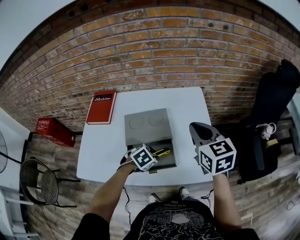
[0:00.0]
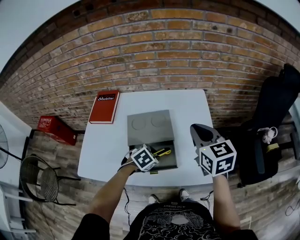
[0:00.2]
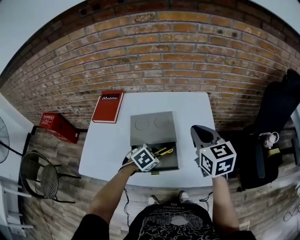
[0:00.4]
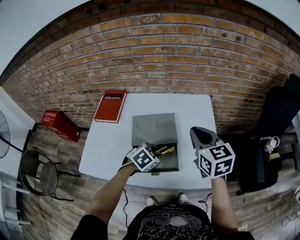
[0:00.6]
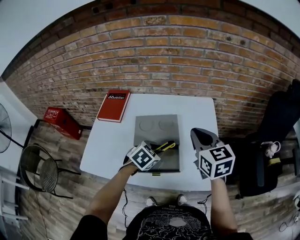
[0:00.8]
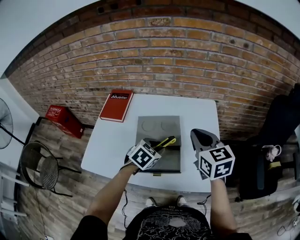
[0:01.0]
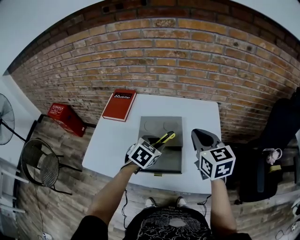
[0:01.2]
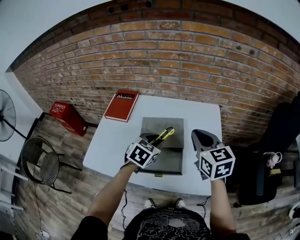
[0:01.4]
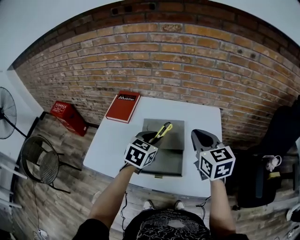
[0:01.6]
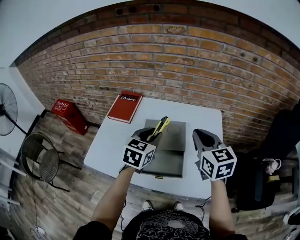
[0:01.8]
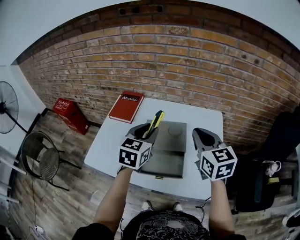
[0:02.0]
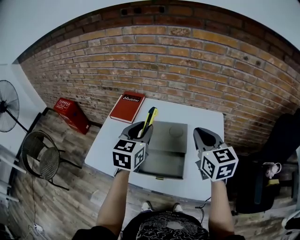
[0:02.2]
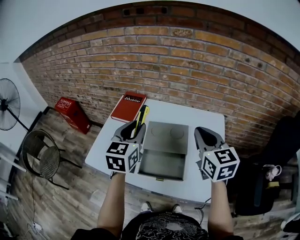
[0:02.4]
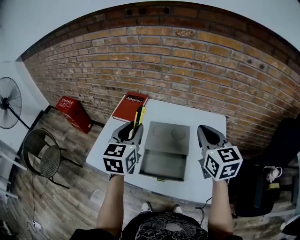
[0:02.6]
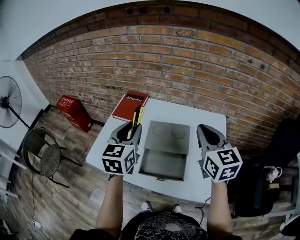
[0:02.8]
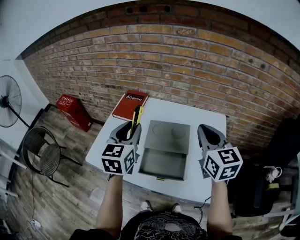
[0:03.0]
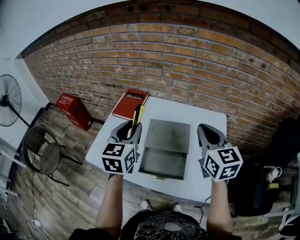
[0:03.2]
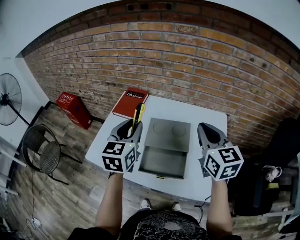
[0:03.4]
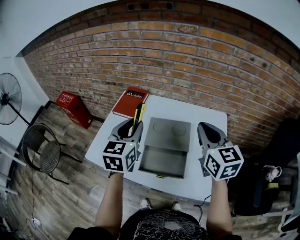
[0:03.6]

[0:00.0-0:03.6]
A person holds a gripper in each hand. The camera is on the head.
0.0 to 1.8 s: The right gripper ends up about 5 cm from where it was. The left gripper shifts approximately 20 cm upward, and angles its fingers upward, by roughly 40 degrees.
1.8 to 3.6 s: The left gripper is displaced to the left and upward by some 10 cm, and swivels approximately 20 degrees.

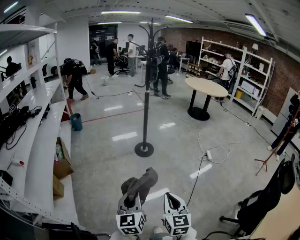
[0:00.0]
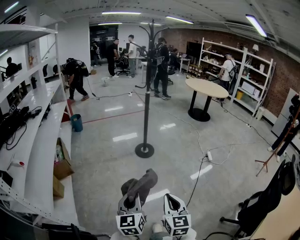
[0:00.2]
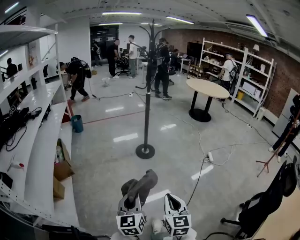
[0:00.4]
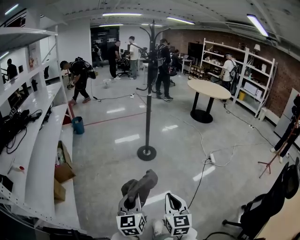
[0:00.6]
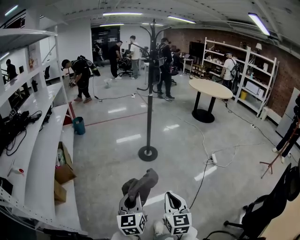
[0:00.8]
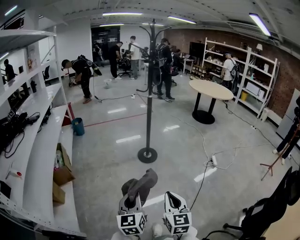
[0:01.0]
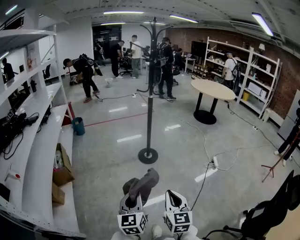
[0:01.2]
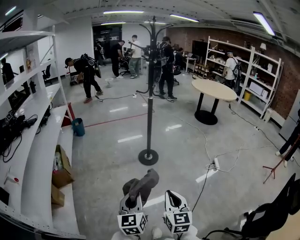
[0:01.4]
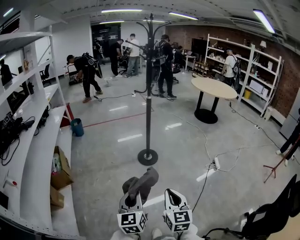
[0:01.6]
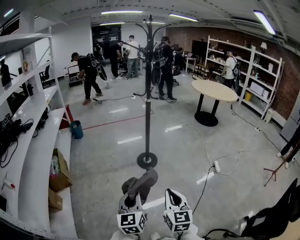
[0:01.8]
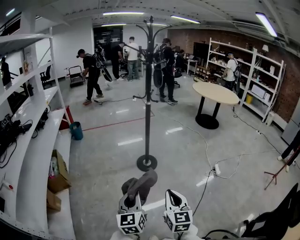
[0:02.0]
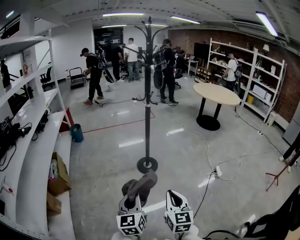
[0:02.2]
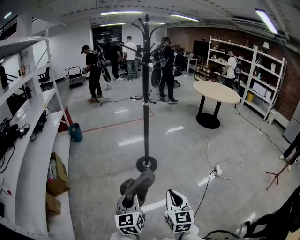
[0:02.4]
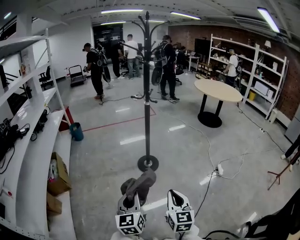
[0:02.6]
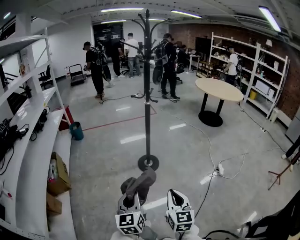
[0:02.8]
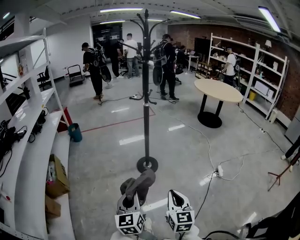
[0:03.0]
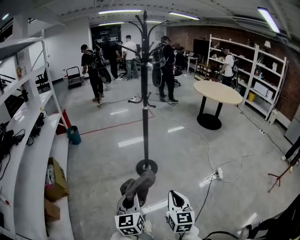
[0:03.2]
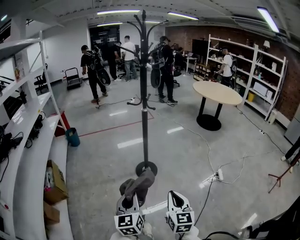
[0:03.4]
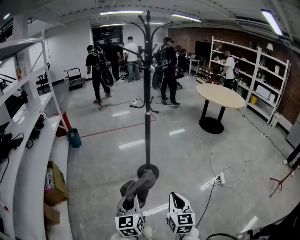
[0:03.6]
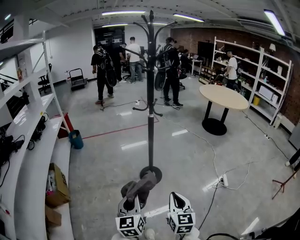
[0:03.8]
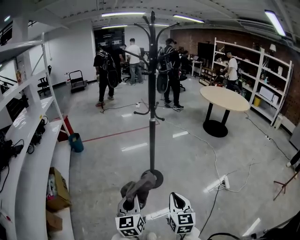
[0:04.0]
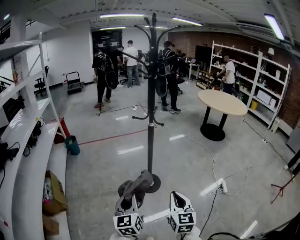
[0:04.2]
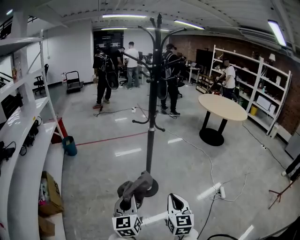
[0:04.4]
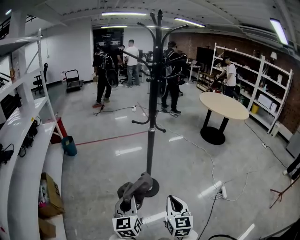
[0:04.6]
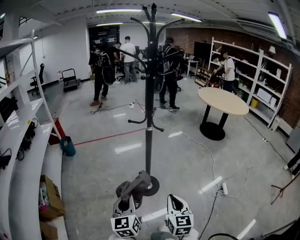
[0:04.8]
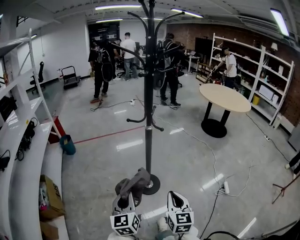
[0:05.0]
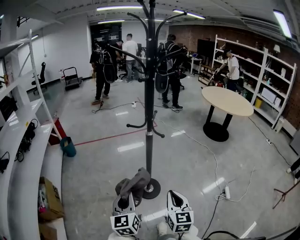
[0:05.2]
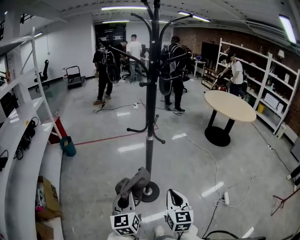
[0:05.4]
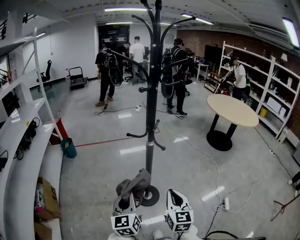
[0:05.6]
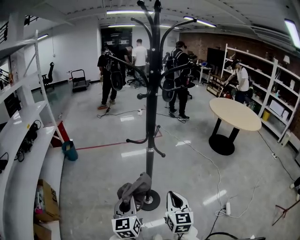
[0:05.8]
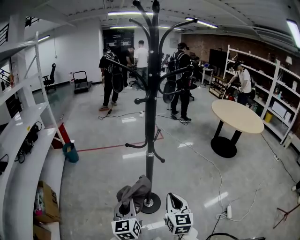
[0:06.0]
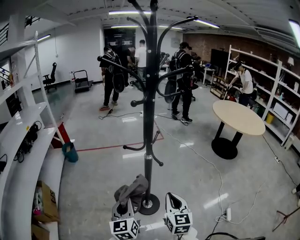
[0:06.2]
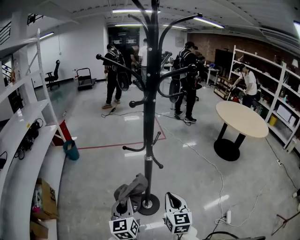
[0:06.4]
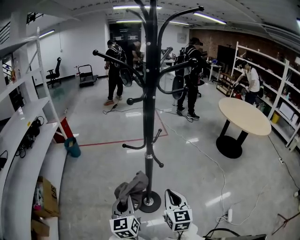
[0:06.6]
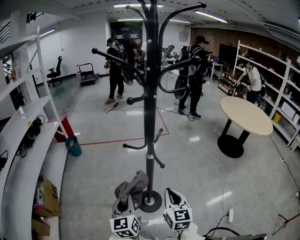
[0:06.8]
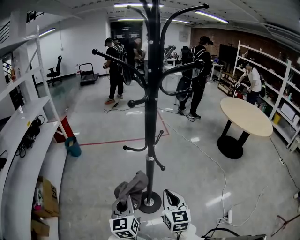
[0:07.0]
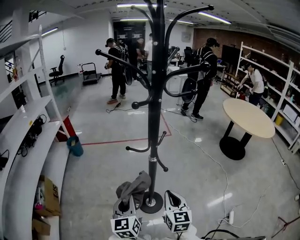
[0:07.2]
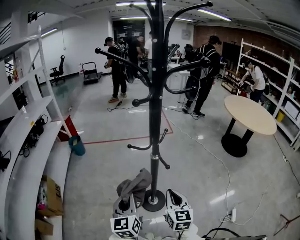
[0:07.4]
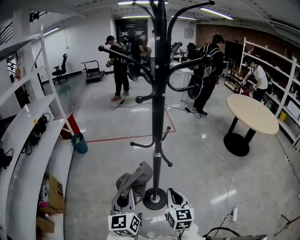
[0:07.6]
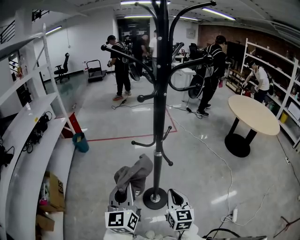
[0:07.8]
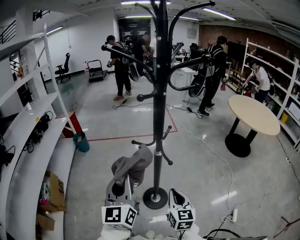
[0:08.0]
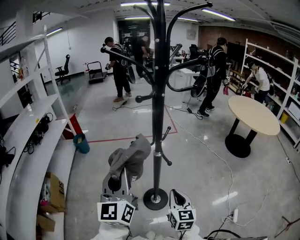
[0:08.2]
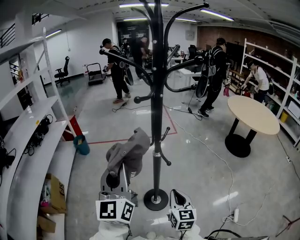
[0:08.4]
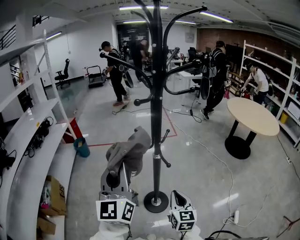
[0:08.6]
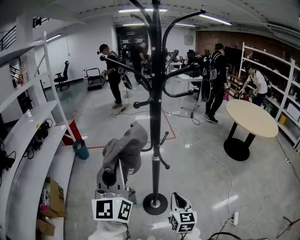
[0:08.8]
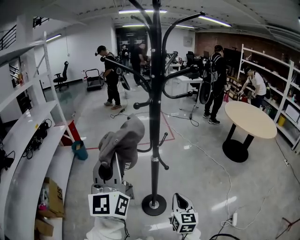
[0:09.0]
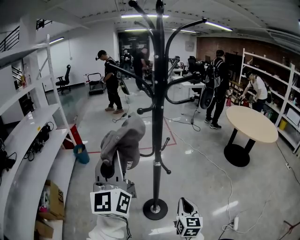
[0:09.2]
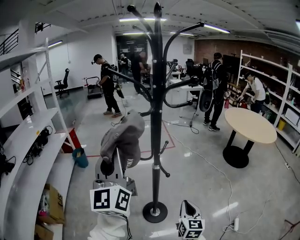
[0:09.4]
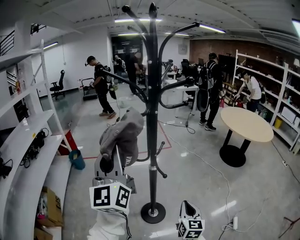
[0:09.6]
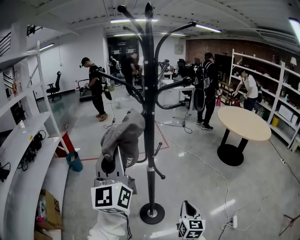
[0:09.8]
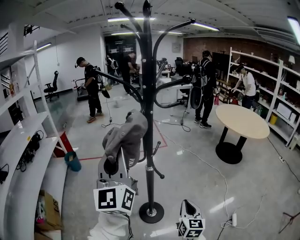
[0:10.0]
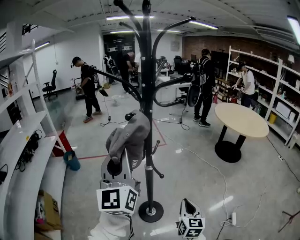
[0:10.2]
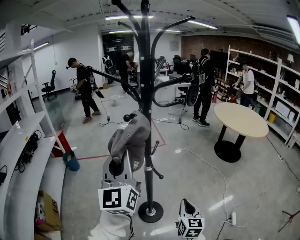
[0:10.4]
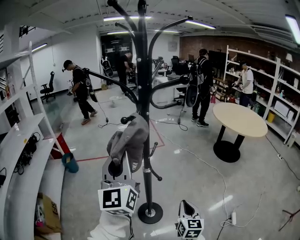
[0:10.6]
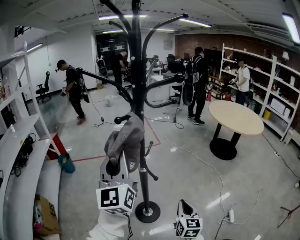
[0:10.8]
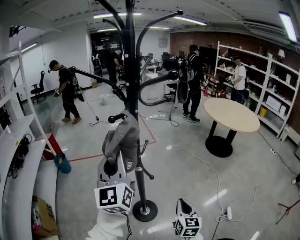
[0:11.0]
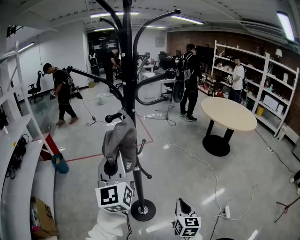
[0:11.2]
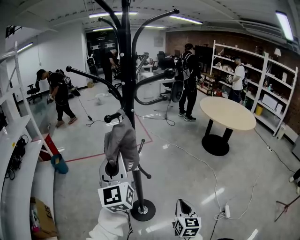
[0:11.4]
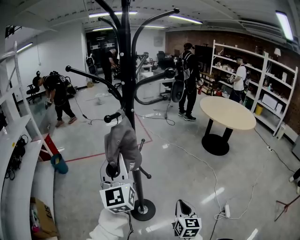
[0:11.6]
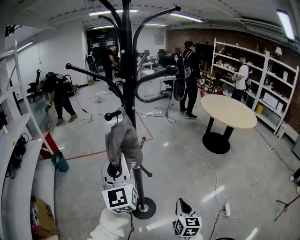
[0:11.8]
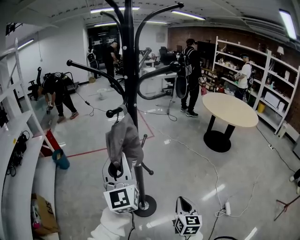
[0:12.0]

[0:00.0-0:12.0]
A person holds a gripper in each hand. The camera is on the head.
0.0 to 1.6 s: Both grippers move forward, about 15 cm.
1.6 to 3.0 s: The right gripper travels forward and to the right by roughly 15 cm. The left gripper is displaced forward by about 10 cm.
3.0 to 4.4 s: Both grippers move forward, roughly 20 cm.
4.4 to 6.0 s: Both grippers move forward, approximately 20 cm.
6.0 to 7.6 s: The left gripper shifts roughly 5 cm upward. The right gripper travels forward by approximately 5 cm.
7.6 to 9.0 s: The left gripper shifts some 20 cm upward, and rotates some 30 degrees.
9.0 to 10.4 s: The right gripper moves to the right, roughly 5 cm. Meanwhile the left gripper is displaced forward and to the right by some 10 cm.
10.4 to 12.0 s: The left gripper goes about 5 cm downward.

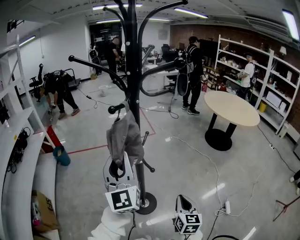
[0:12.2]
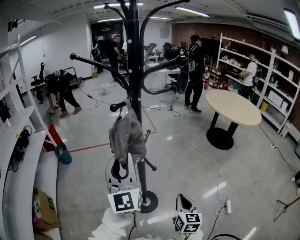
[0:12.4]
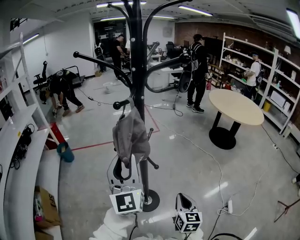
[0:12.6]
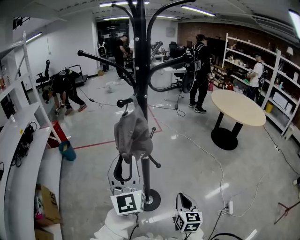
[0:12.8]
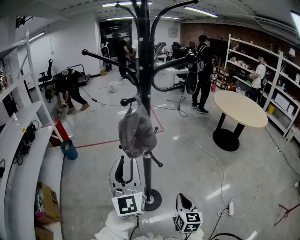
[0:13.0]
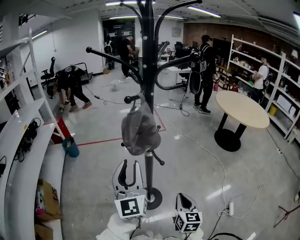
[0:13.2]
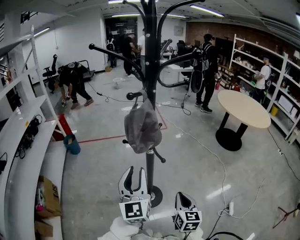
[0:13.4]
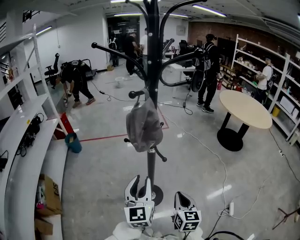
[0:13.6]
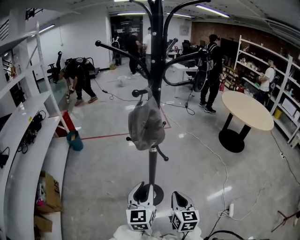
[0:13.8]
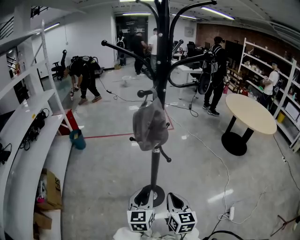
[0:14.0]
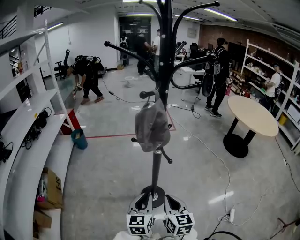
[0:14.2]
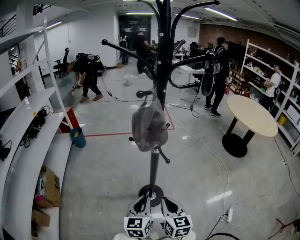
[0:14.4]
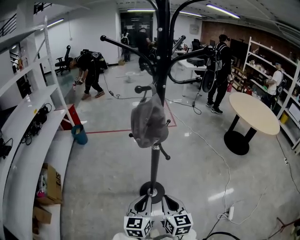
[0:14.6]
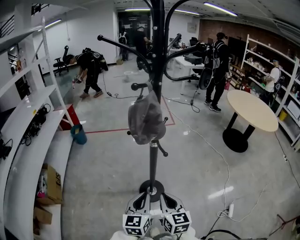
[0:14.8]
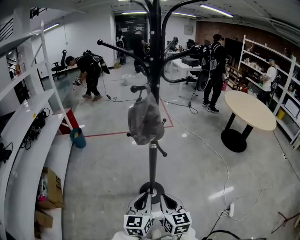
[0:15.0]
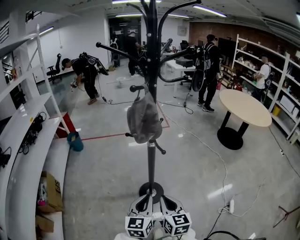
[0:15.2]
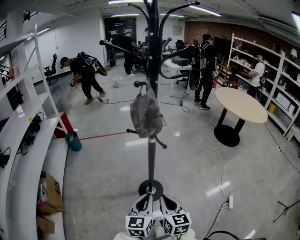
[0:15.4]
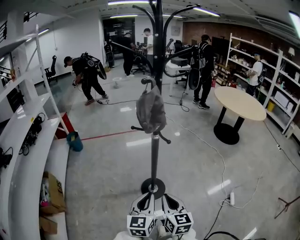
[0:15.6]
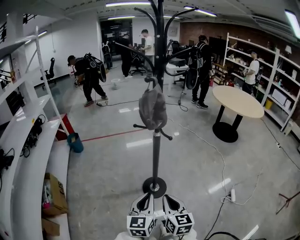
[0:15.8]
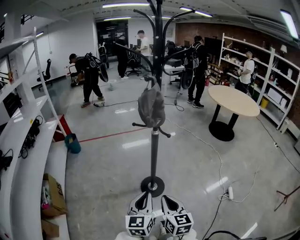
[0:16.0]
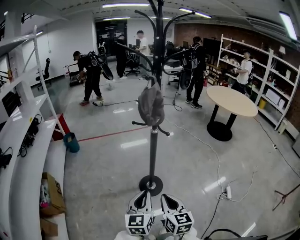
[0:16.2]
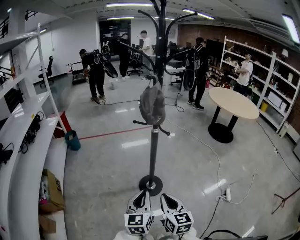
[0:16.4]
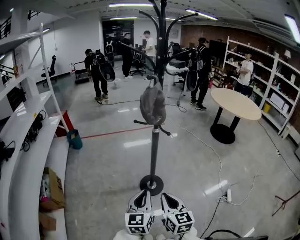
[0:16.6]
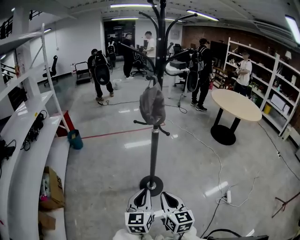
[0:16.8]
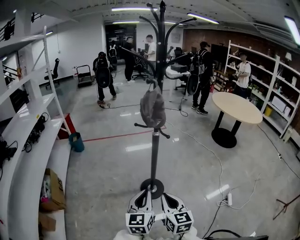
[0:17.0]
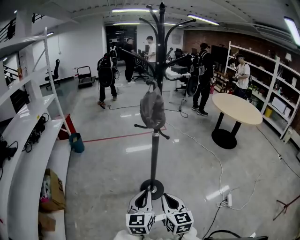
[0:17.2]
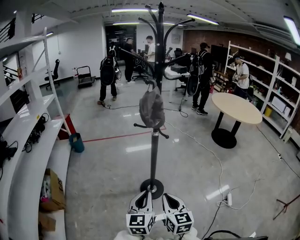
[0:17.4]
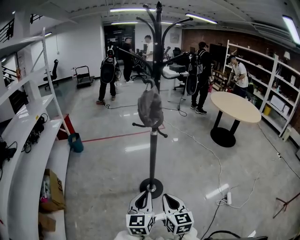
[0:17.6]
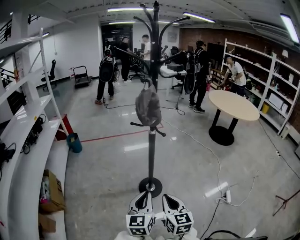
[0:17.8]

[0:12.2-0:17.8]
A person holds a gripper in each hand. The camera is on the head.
12.2 to 13.6 s: The left gripper travels downward and backward by about 15 cm, and changes its angle by some 20 degrees; the right gripper changes place by about 5 cm.
13.6 to 15.0 s: The right gripper is displaced to the left by roughly 5 cm; the left gripper moves downward and backward, approximately 10 cm, and closes its fingers.
15.0 to 16.4 s: The grippers both shift backward and to the left by about 15 cm.
16.4 to 17.8 s: The grippers stay close to where they were, moving slightly.

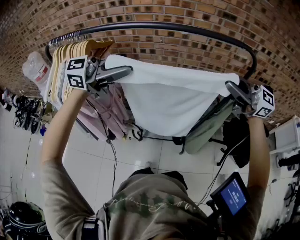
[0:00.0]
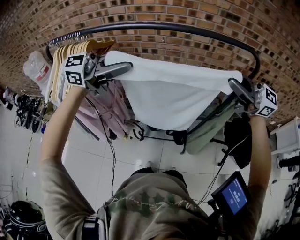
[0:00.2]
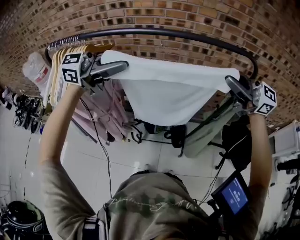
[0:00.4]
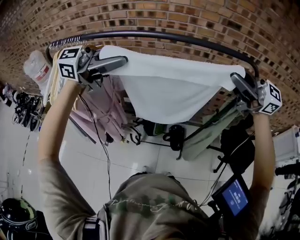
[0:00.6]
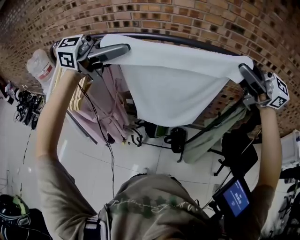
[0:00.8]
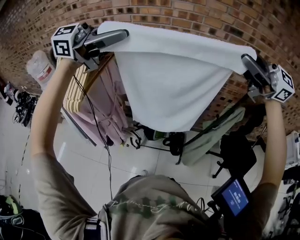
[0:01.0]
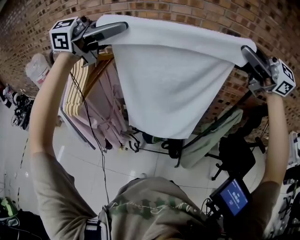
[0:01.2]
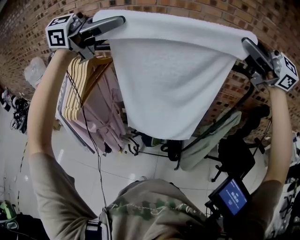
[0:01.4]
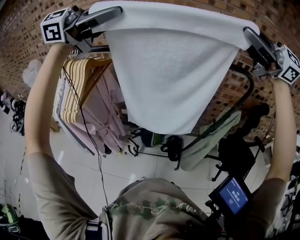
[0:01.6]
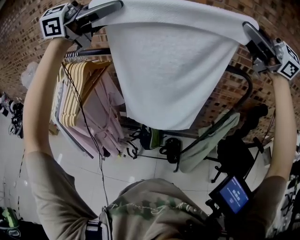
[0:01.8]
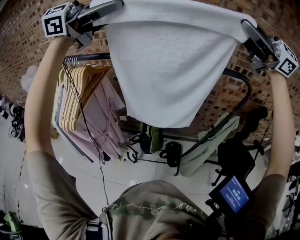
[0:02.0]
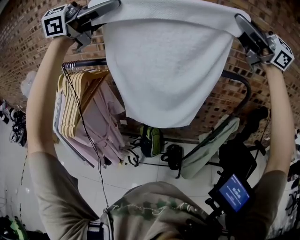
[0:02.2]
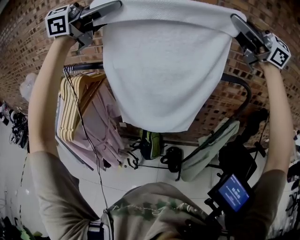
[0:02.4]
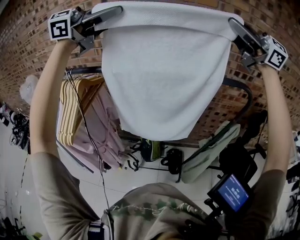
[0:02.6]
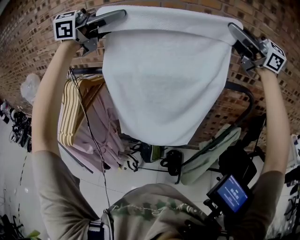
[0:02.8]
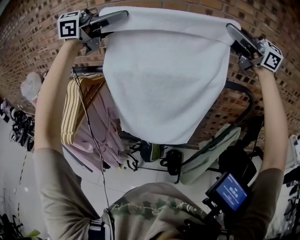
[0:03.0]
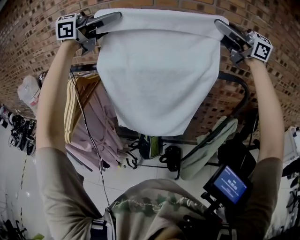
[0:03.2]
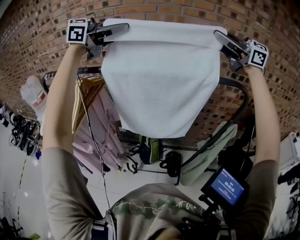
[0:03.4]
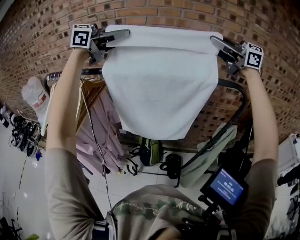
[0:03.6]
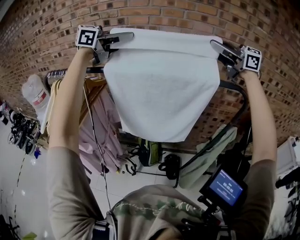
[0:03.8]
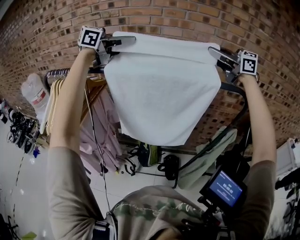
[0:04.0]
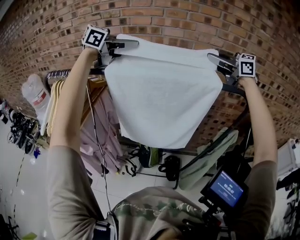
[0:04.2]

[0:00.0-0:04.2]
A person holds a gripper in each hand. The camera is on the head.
0.0 to 1.4 s: The grippers both shift upward by about 20 cm.
1.4 to 2.8 s: The right gripper moves about 15 cm, while the left gripper moves some 15 cm.
2.8 to 4.2 s: The two grippers go about 15 cm downward. The right gripper turns by some 20 degrees. The left gripper swivels some 30 degrees.
